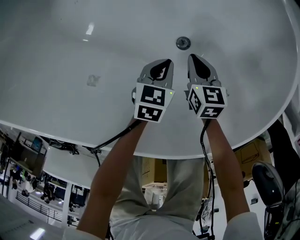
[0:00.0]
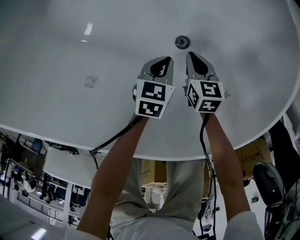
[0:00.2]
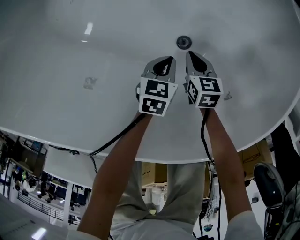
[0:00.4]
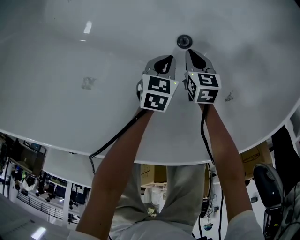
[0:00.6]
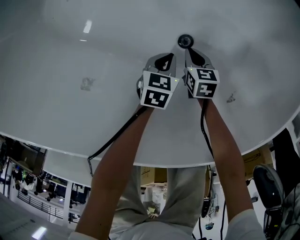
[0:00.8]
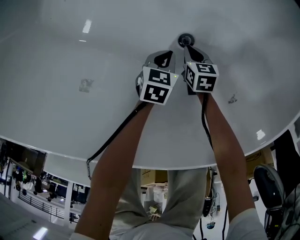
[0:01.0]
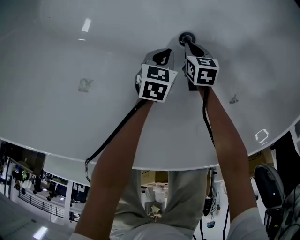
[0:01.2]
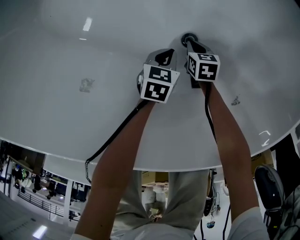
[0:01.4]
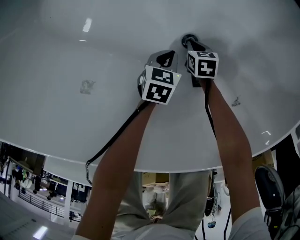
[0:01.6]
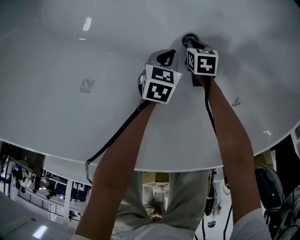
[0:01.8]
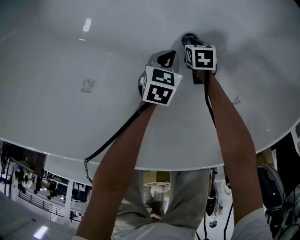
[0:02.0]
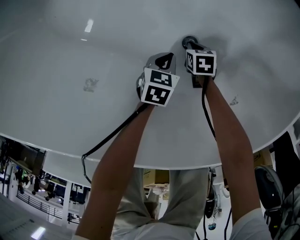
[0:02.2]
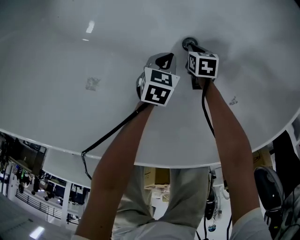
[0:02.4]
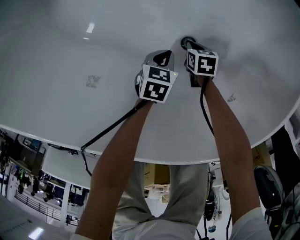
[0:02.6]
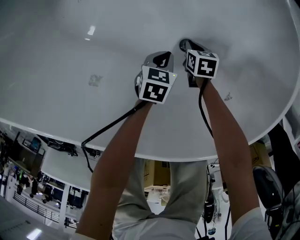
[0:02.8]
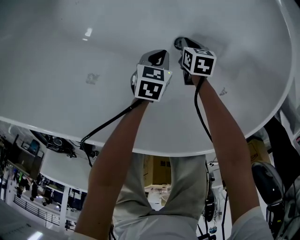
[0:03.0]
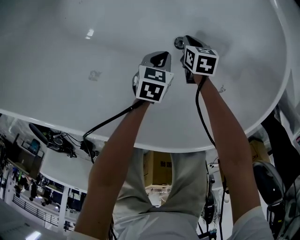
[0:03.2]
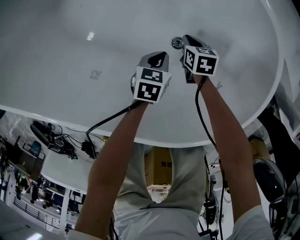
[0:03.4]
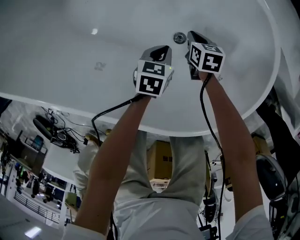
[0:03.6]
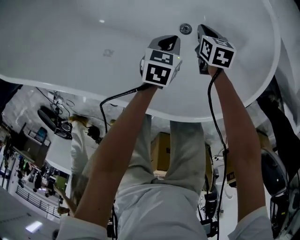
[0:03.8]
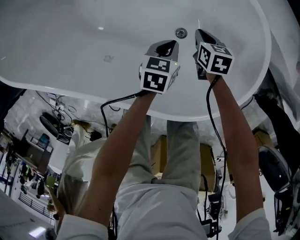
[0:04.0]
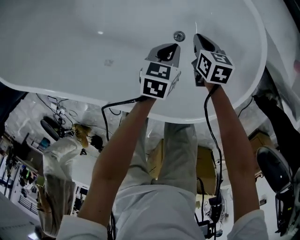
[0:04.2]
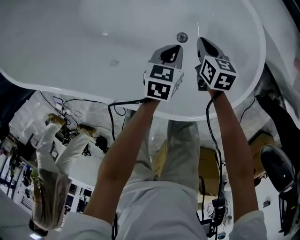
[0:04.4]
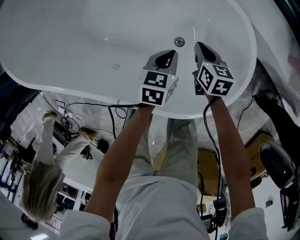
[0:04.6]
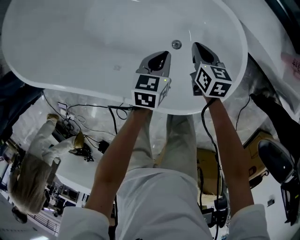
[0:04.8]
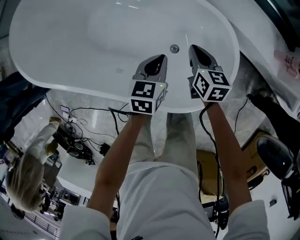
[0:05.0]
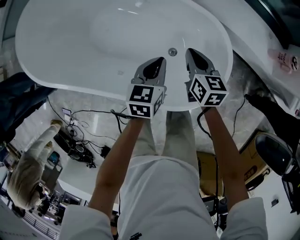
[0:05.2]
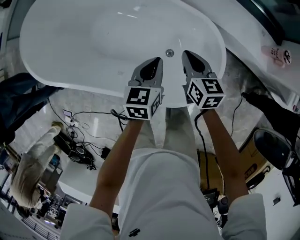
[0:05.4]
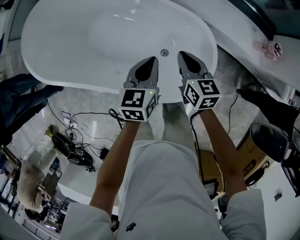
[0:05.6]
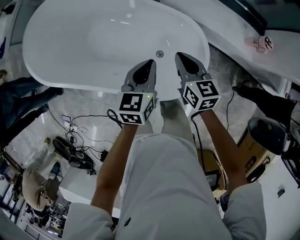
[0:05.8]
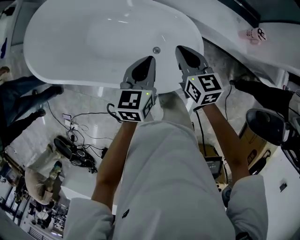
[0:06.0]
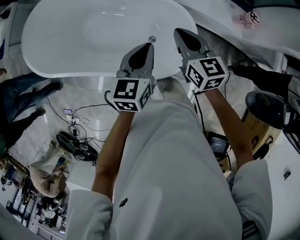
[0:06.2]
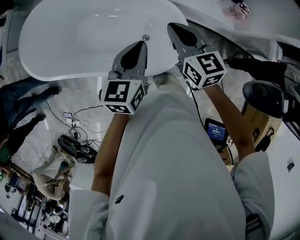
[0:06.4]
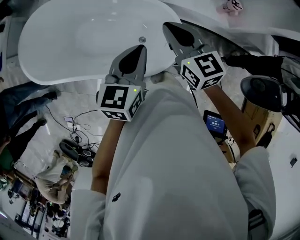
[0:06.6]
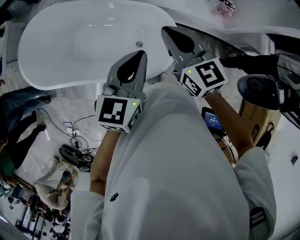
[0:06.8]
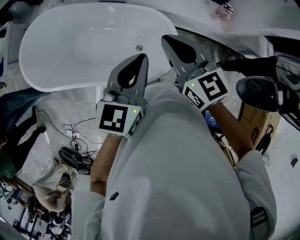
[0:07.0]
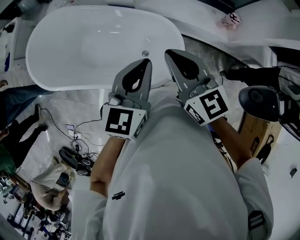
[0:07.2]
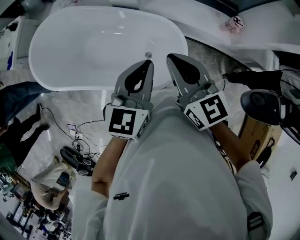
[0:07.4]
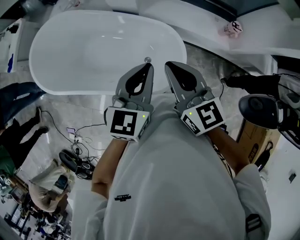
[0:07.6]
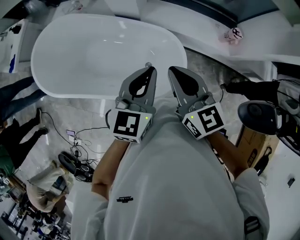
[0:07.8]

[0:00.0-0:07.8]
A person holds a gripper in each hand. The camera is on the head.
0:00.0 to 0:01.6: The left gripper shifts roughly 10 cm downward, while the right gripper moves downward, roughly 20 cm, and turns by some 20 degrees.
0:01.6 to 0:03.2: The two grippers go about 10 cm upward.
0:03.2 to 0:04.6: Both grippers move upward, about 25 cm.
0:04.6 to 0:06.2: Both grippers move upward, about 40 cm. The left gripper turns by some 20 degrees. The right gripper rotates some 30 degrees.
0:06.2 to 0:07.8: The grippers both shift upward by approximately 15 cm.

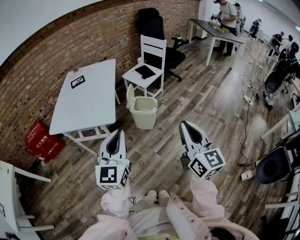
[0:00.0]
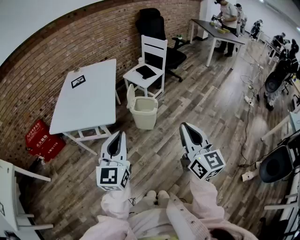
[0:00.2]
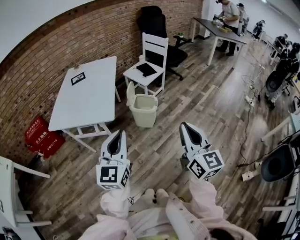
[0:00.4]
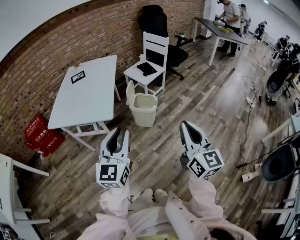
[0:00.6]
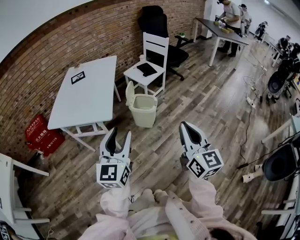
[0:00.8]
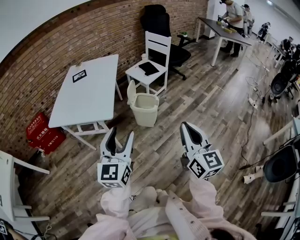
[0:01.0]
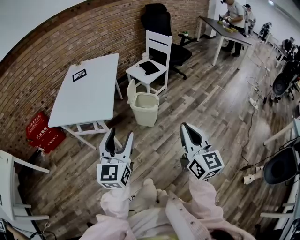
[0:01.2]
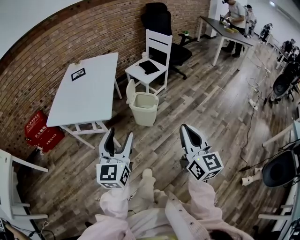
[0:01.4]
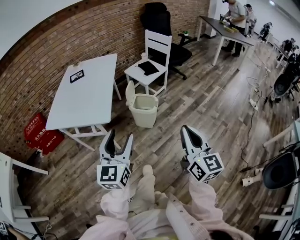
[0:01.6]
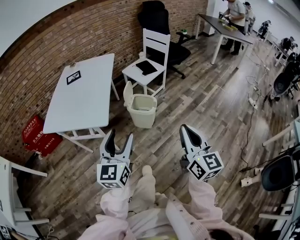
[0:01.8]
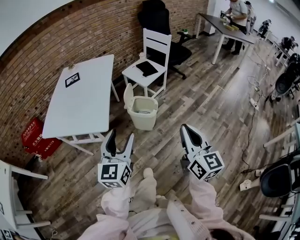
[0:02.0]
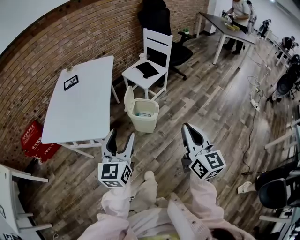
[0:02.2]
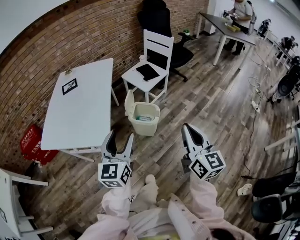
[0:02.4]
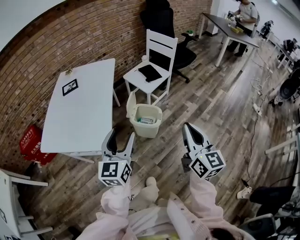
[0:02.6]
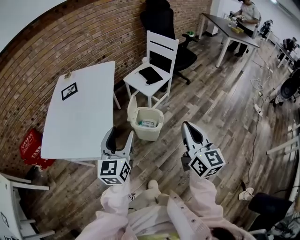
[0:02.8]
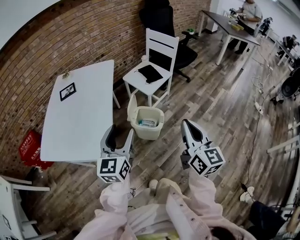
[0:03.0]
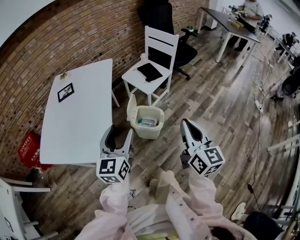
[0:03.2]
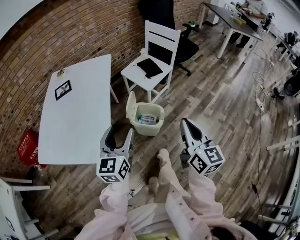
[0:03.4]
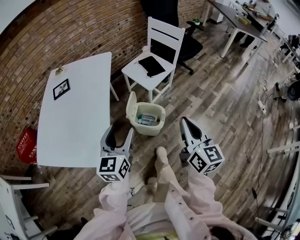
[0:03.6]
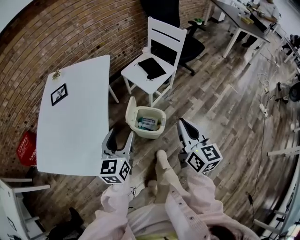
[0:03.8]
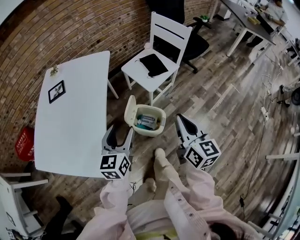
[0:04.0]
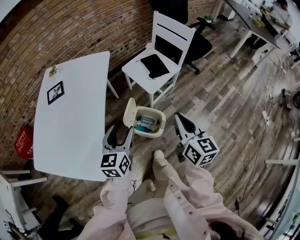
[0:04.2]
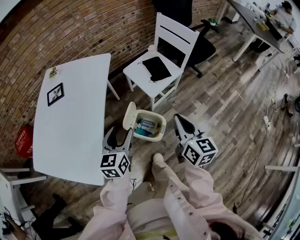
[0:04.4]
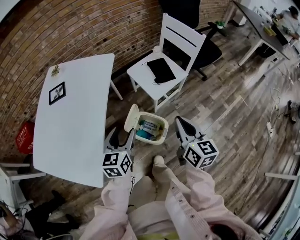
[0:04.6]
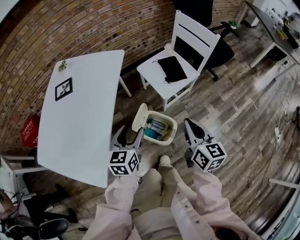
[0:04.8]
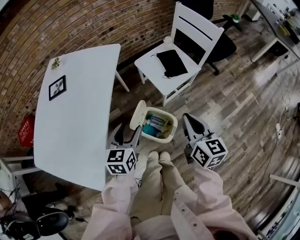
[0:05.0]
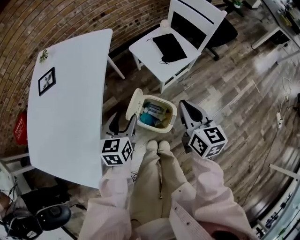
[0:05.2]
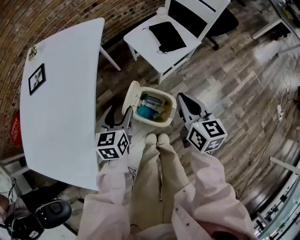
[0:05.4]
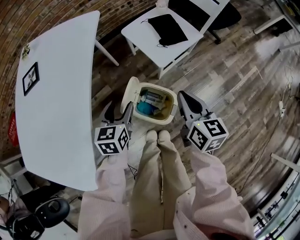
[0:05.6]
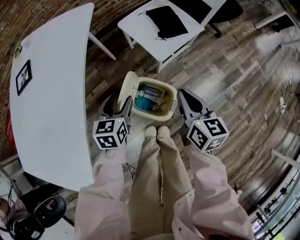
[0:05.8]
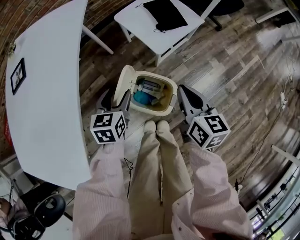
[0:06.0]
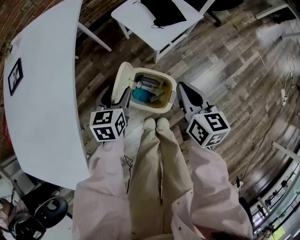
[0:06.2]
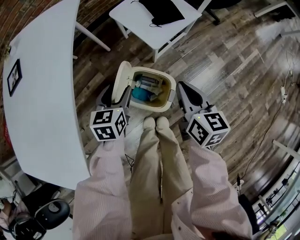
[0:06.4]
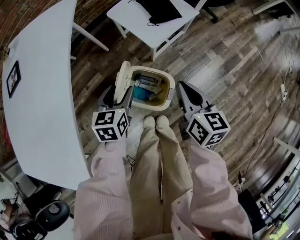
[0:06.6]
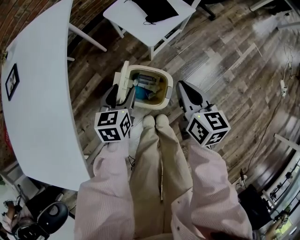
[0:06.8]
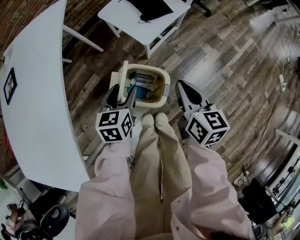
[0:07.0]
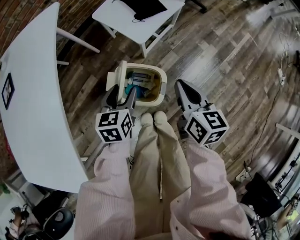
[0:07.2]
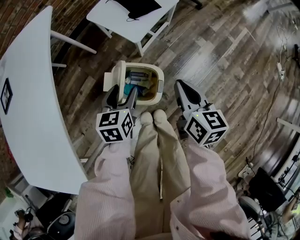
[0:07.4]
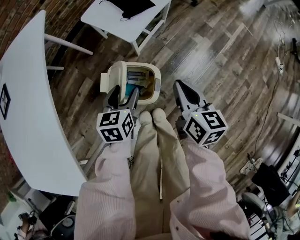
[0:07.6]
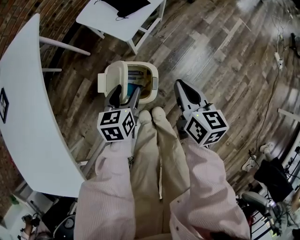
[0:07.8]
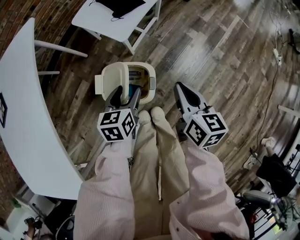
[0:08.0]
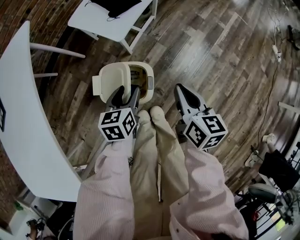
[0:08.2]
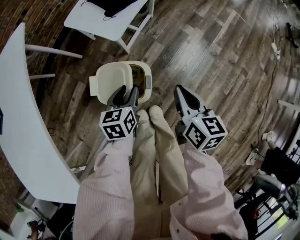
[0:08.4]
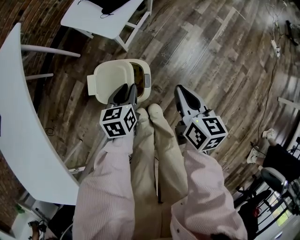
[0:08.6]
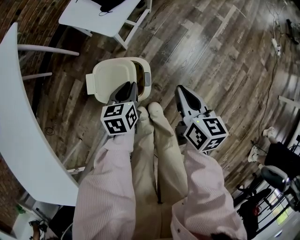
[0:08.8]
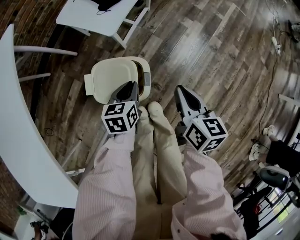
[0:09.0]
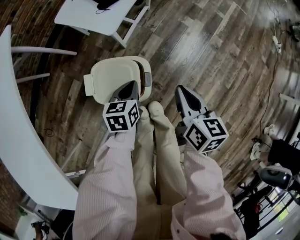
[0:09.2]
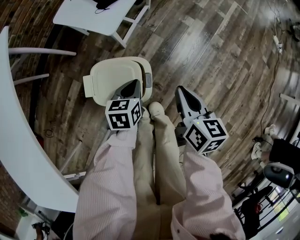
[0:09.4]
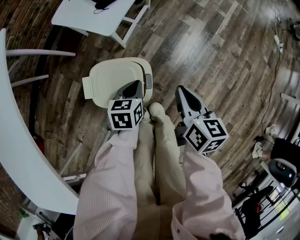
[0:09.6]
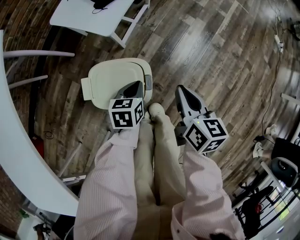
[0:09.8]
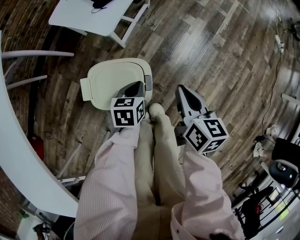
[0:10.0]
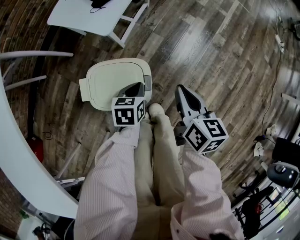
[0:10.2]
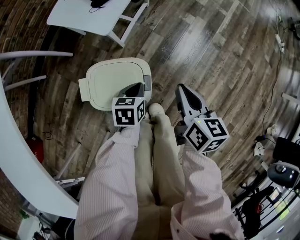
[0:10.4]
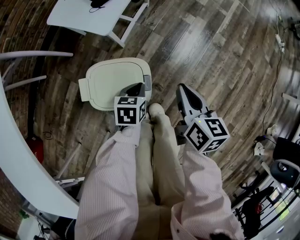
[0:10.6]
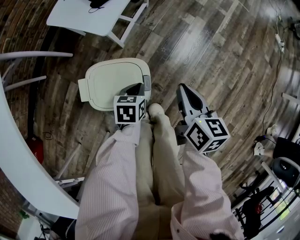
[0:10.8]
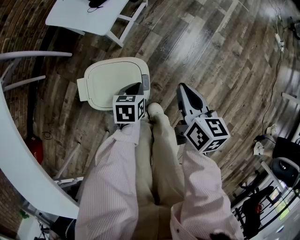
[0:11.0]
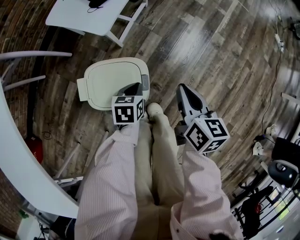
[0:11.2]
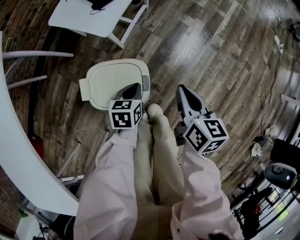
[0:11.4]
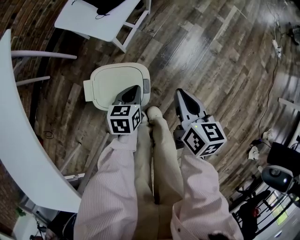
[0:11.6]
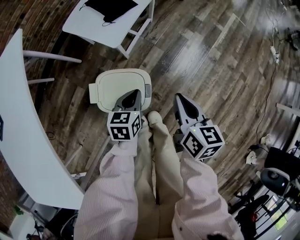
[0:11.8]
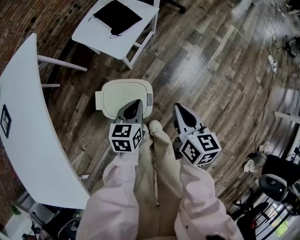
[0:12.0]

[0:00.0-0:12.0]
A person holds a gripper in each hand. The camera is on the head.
0:00.0 to 0:01.6: The right gripper moves roughly 10 cm. The left gripper changes place by roughly 5 cm, and opens its fingers.
0:01.6 to 0:03.0: The two grippers go some 25 cm forward.
0:03.0 to 0:04.4: The right gripper shifts roughly 25 cm forward. The left gripper heads forward and downward, covering about 25 cm.
0:04.4 to 0:06.0: The grippers both shift downward and forward by roughly 25 cm.
0:06.0 to 0:07.6: The right gripper goes some 10 cm to the right and backward, while the left gripper shifts about 10 cm to the right.
0:07.6 to 0:09.0: The left gripper travels downward and to the right by approximately 10 cm, and closes its fingers. Meanwhile the right gripper moves downward, some 5 cm.
0:09.0 to 0:10.4: The right gripper travels downward by some 5 cm. The left gripper is displaced downward by roughly 10 cm.
0:10.4 to 0:12.0: Both grippers move upward, roughly 15 cm.

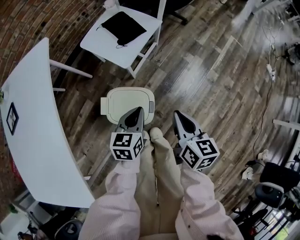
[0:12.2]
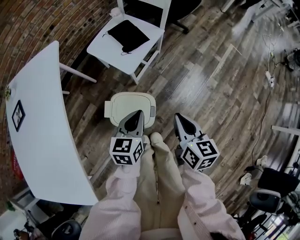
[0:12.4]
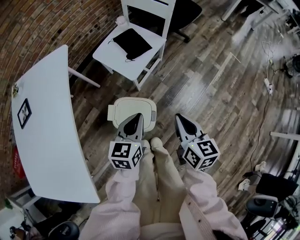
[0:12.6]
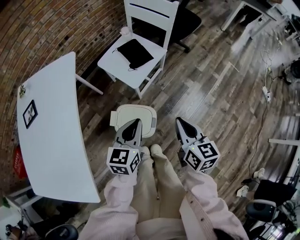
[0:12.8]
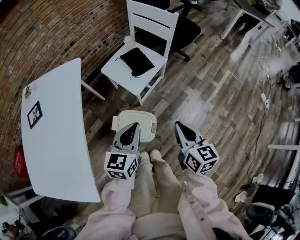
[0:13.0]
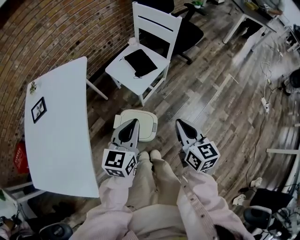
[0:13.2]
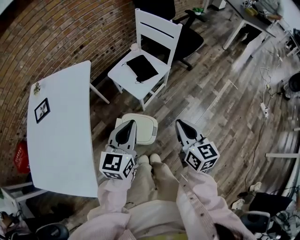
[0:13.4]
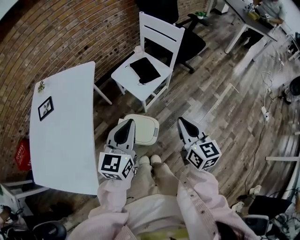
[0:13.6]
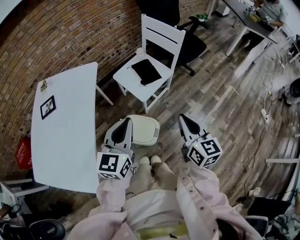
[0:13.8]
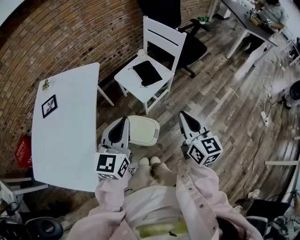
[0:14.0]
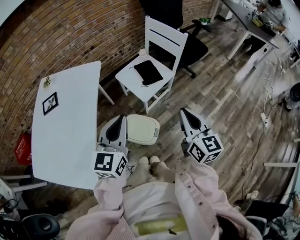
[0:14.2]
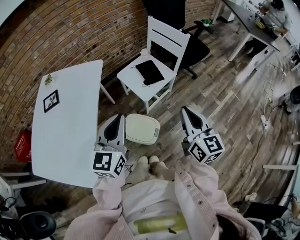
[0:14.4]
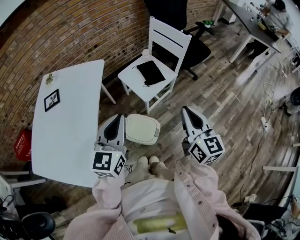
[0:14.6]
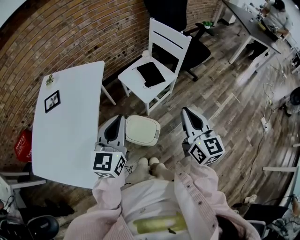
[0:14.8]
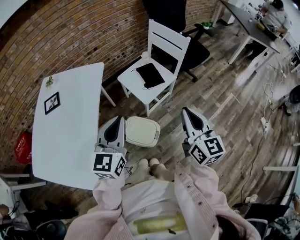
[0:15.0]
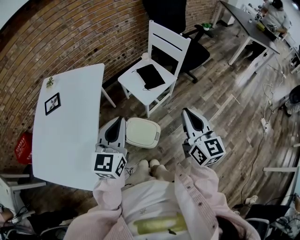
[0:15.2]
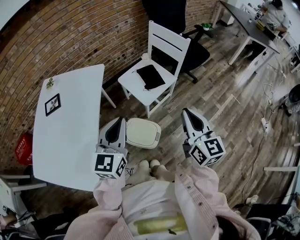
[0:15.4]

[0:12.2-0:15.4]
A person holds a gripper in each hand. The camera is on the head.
0:12.2 to 0:13.8: Both grippers move upward, roughly 30 cm. The right gripper turns by approximately 30 degrees. Meanwhile the left gripper rotates approximately 30 degrees.
0:13.8 to 0:15.4: The right gripper shifts some 5 cm upward.

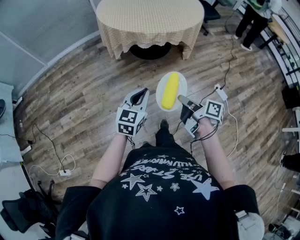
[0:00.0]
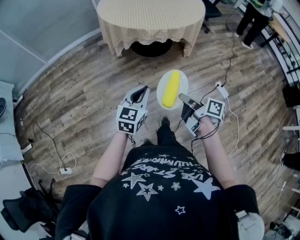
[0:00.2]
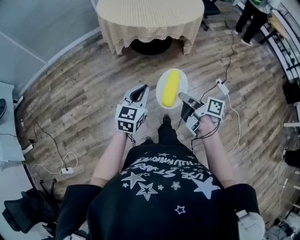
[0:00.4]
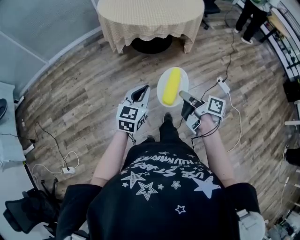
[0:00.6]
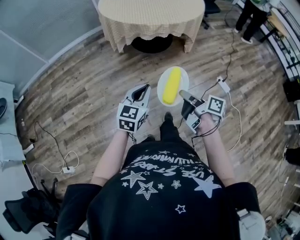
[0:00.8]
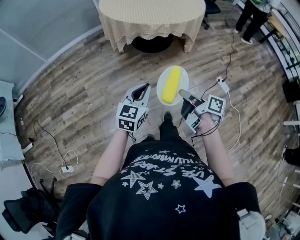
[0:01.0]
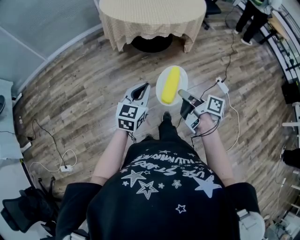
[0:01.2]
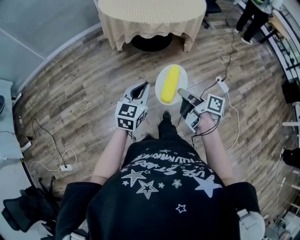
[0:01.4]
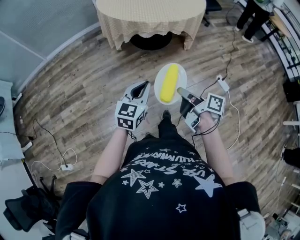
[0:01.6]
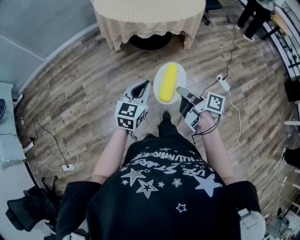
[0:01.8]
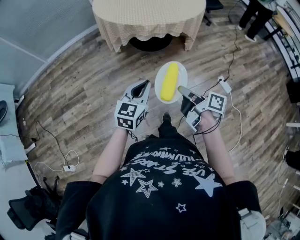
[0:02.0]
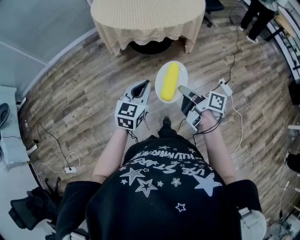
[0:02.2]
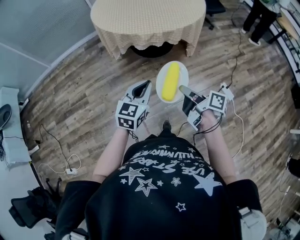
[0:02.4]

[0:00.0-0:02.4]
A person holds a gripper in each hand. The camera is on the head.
0:00.0 to 0:01.2: The grippers move only a little.
0:01.2 to 0:02.4: The two grippers go approximately 15 cm forward and to the right.
